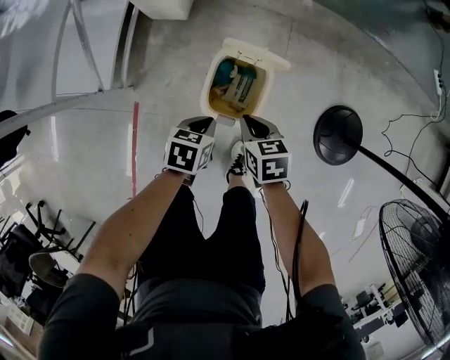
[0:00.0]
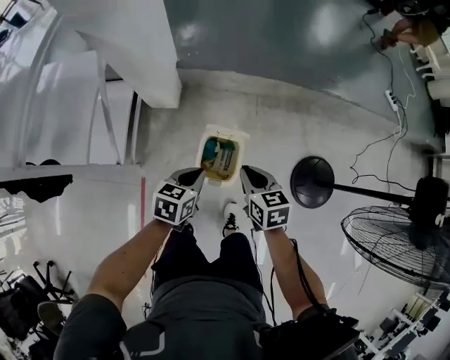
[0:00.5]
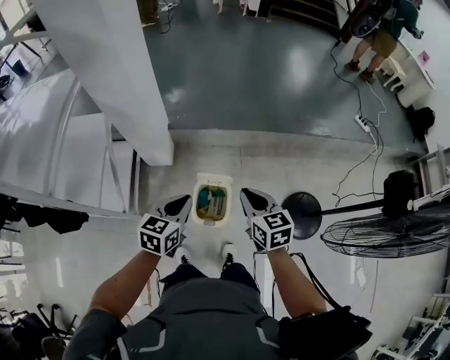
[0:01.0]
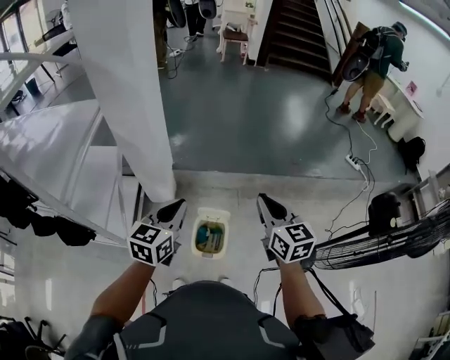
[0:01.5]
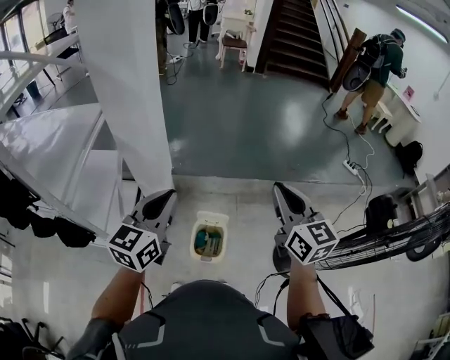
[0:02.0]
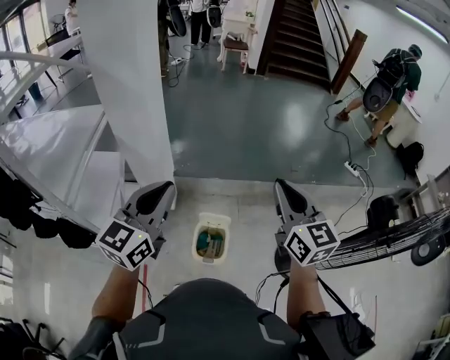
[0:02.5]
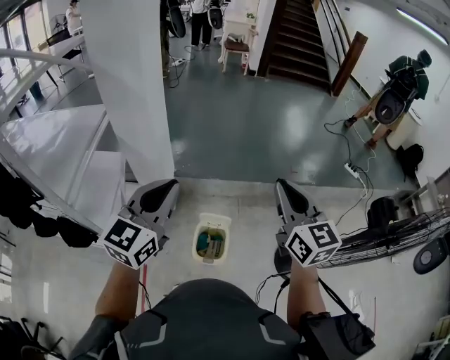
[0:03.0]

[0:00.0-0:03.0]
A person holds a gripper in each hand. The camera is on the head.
0:00.0 to 0:01.5: The two grippers go approximately 60 cm upward. The right gripper angles its fingers upward, by some 40 degrees; the left gripper tilts its fingers roughly 40 degrees upward.
0:01.5 to 0:03.0: The grippers both shift upward by about 15 cm.

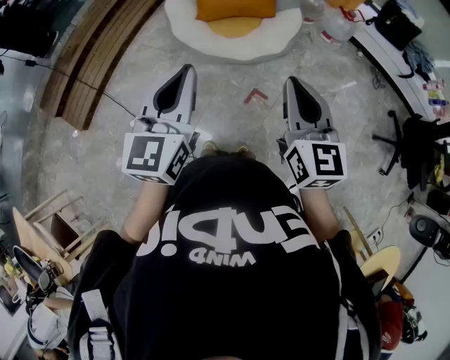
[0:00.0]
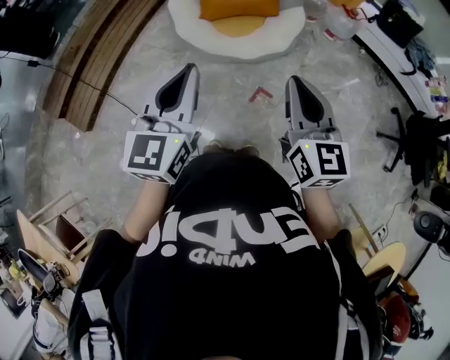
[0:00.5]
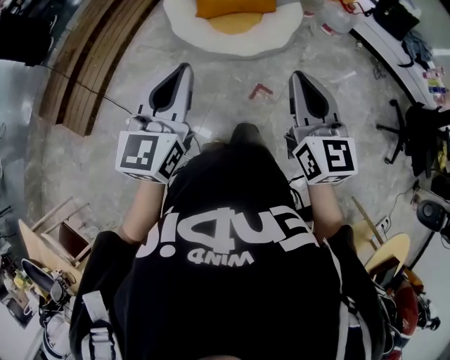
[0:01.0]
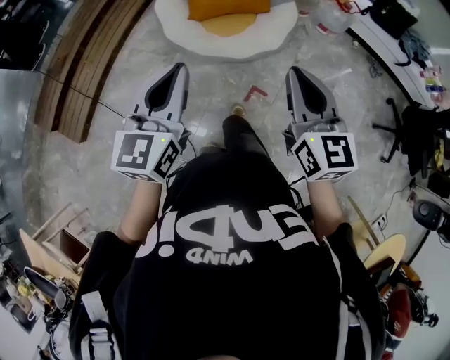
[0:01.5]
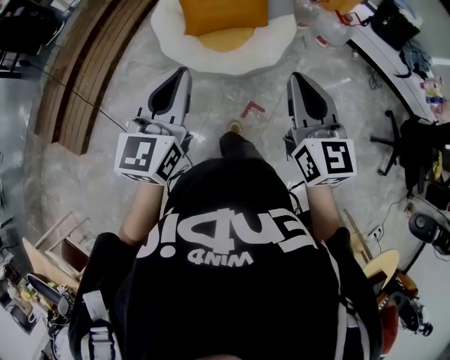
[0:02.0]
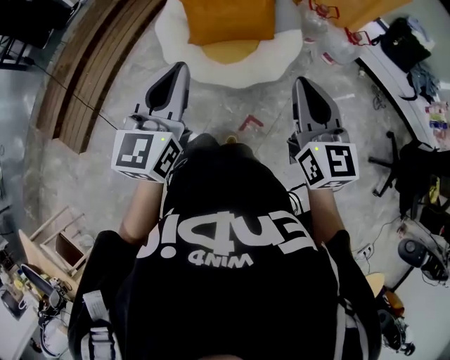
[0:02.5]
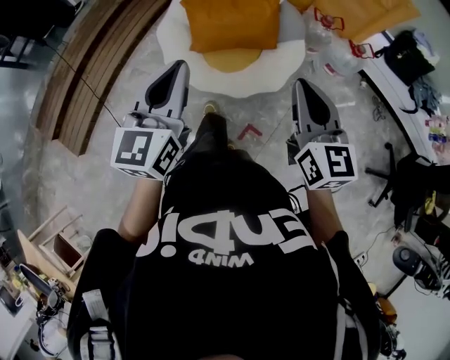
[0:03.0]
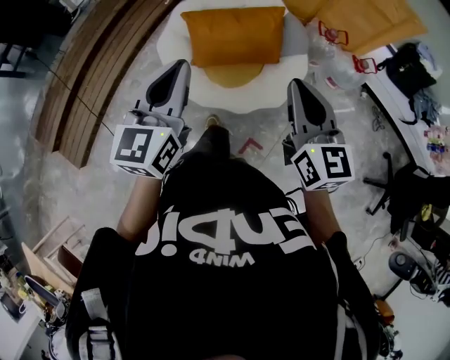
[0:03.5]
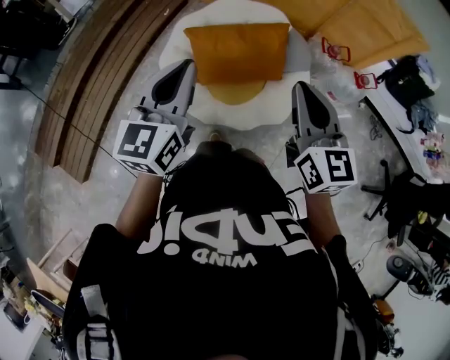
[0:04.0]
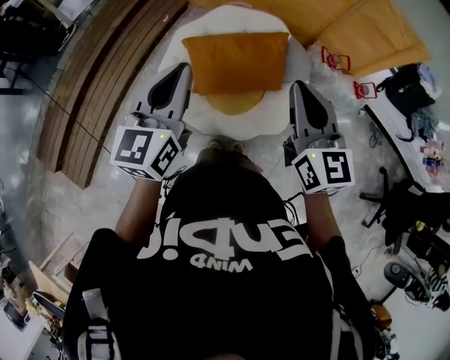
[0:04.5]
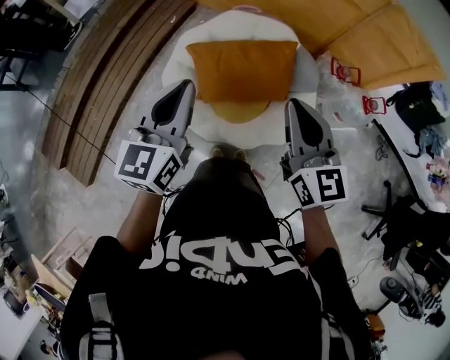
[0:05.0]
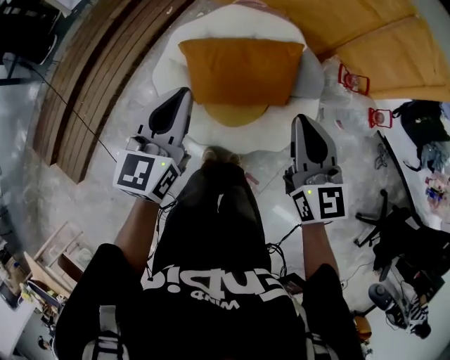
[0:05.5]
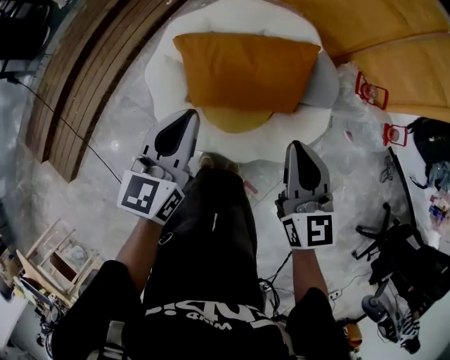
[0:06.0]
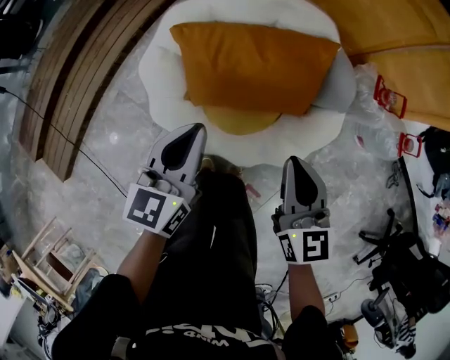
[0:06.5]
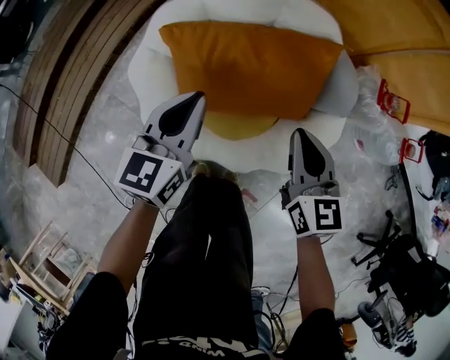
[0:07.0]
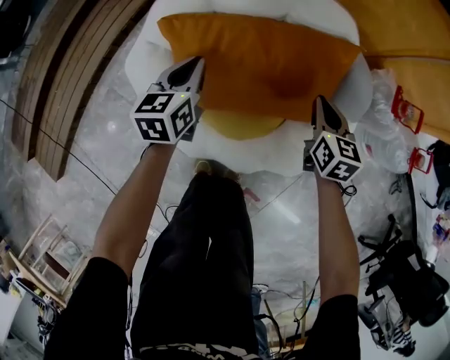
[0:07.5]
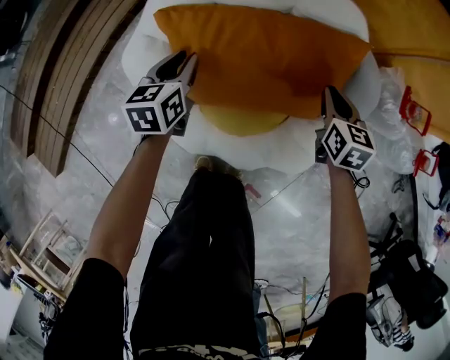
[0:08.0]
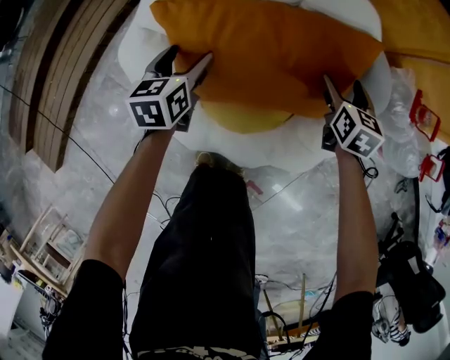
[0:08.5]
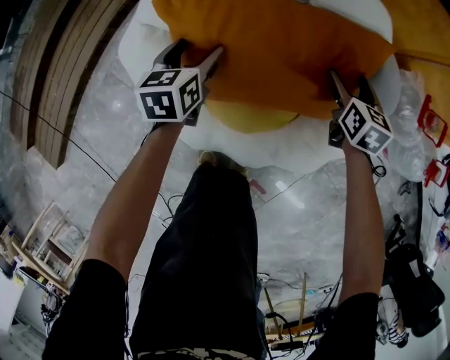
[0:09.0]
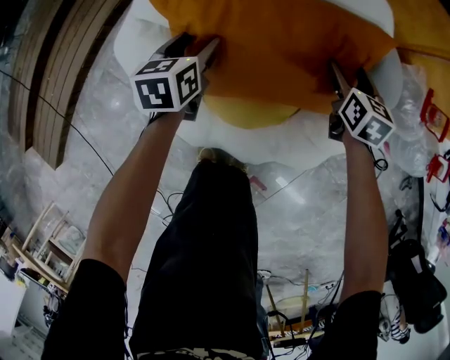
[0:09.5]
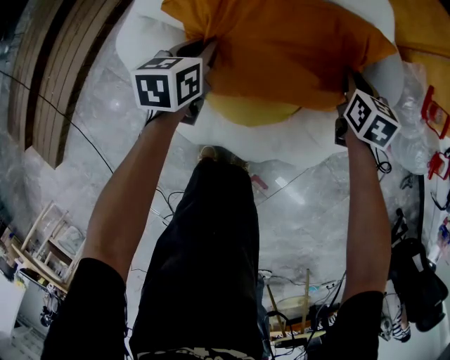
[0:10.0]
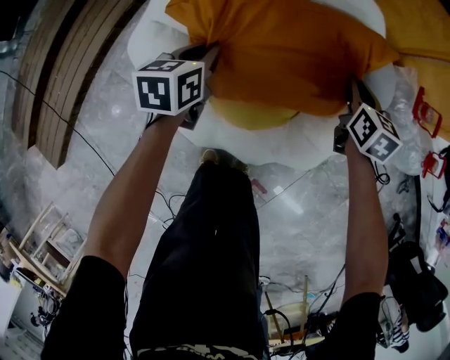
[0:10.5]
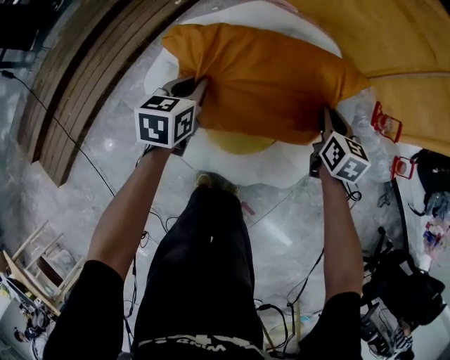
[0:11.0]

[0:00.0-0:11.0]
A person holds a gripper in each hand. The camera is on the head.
0:00.0 to 0:02.0: Both grippers move forward, about 15 cm.
0:02.0 to 0:03.5: Both grippers move forward, about 25 cm.
0:03.5 to 0:05.5: The right gripper goes roughly 25 cm forward. Meanwhile the left gripper travels forward and downward by about 25 cm.
0:05.5 to 0:07.5: Both grippers move downward, approximately 40 cm. The left gripper rotates approximately 20 degrees, while the right gripper rotates about 30 degrees.
0:07.5 to 0:09.0: The right gripper is displaced downward and forward by about 10 cm, and opens its fingers; the left gripper shifts roughly 10 cm downward, and opens its fingers.
0:09.0 to 0:11.0: The grippers both shift upward by about 20 cm. The right gripper closes its fingers, while the left gripper closes.

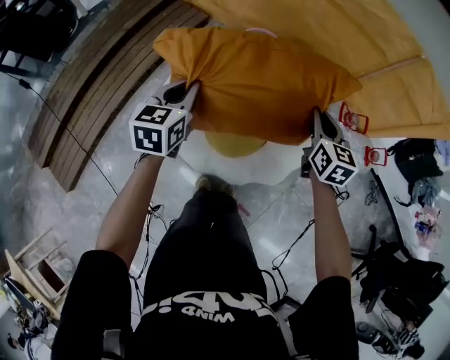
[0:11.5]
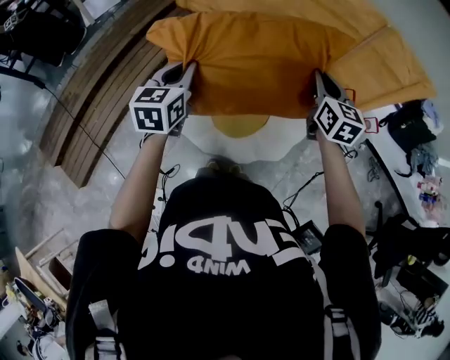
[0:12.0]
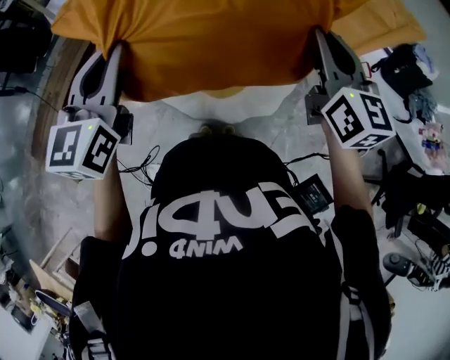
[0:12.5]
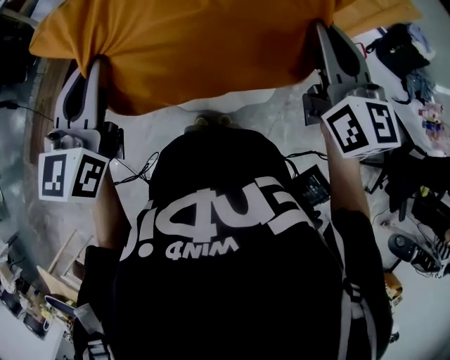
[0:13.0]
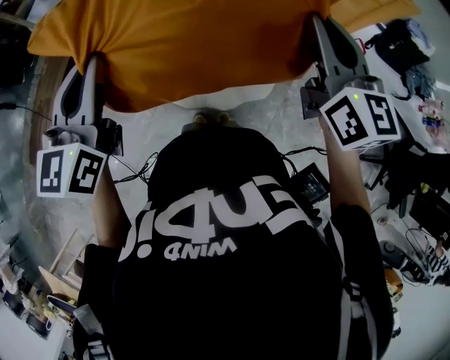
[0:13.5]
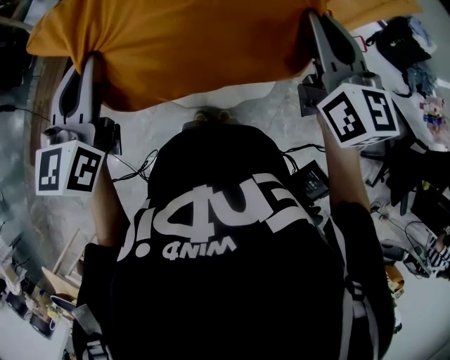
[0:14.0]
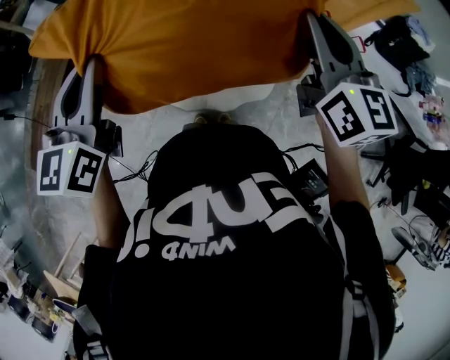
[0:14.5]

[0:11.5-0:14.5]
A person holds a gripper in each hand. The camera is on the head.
0:11.5 to 0:13.0: The two grippers go roughly 35 cm upward and backward. The left gripper rotates some 20 degrees, while the right gripper turns by approximately 20 degrees.
0:13.0 to 0:14.5: The grippers make only small movements.

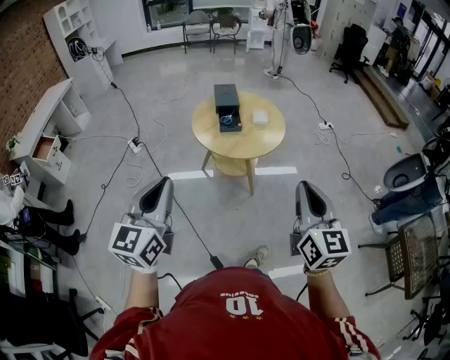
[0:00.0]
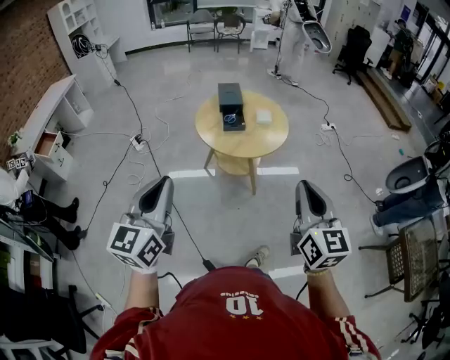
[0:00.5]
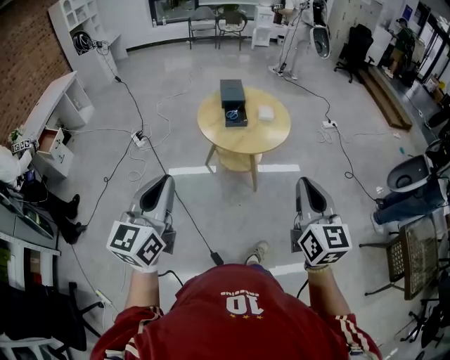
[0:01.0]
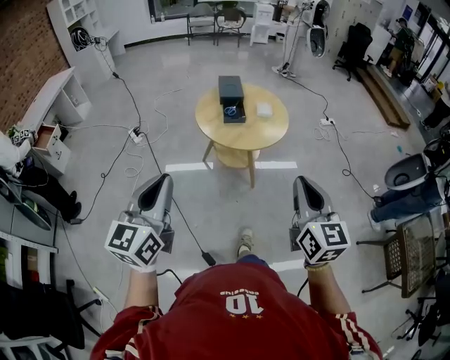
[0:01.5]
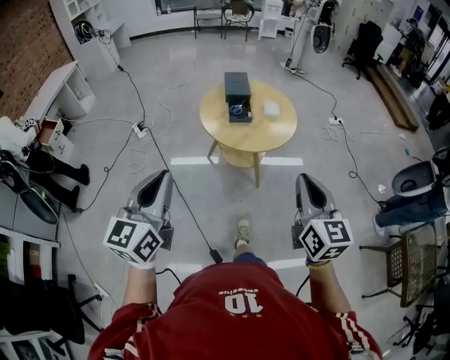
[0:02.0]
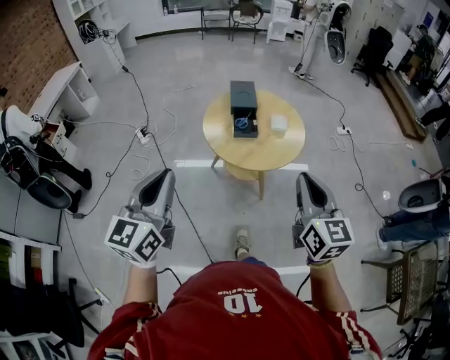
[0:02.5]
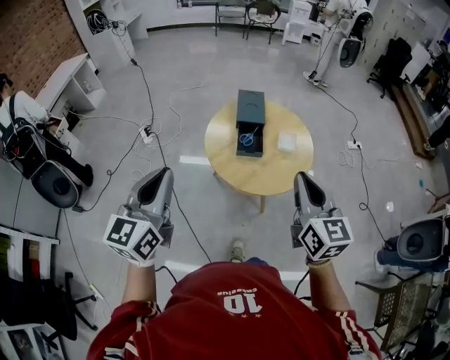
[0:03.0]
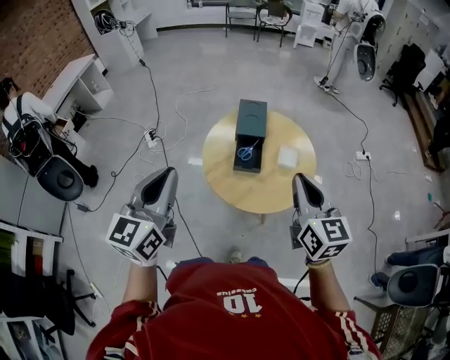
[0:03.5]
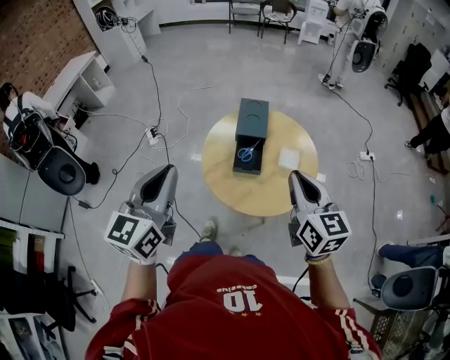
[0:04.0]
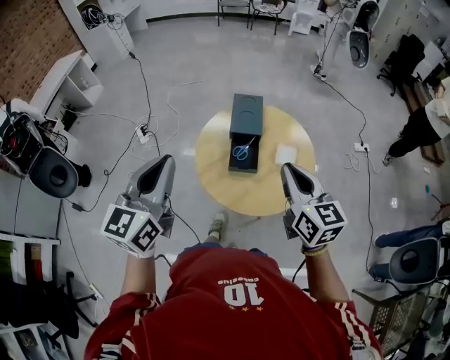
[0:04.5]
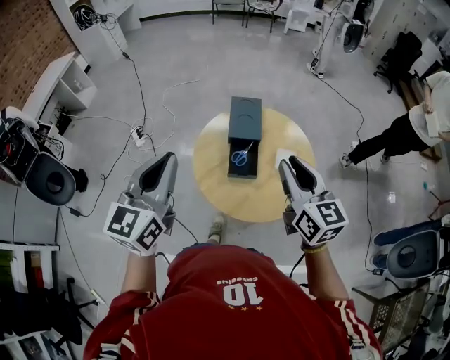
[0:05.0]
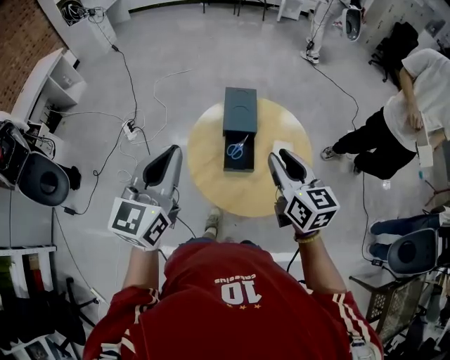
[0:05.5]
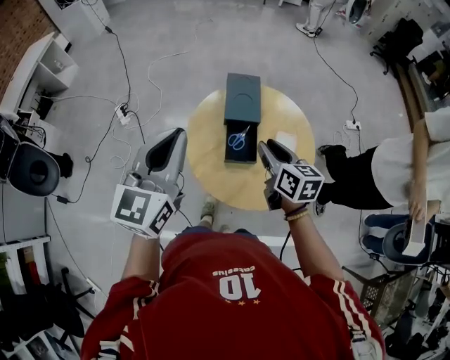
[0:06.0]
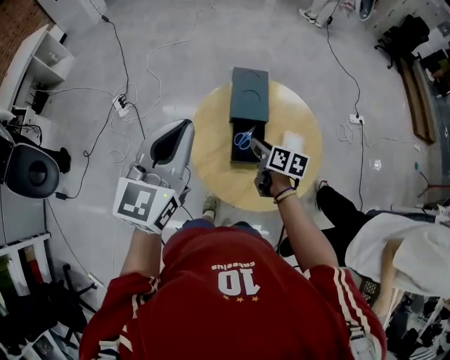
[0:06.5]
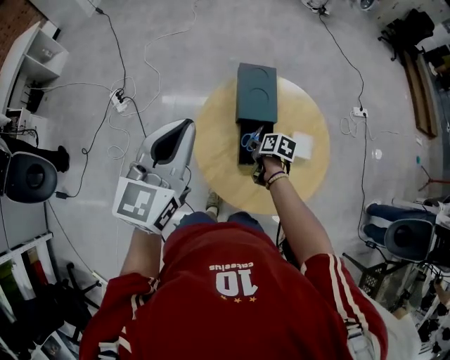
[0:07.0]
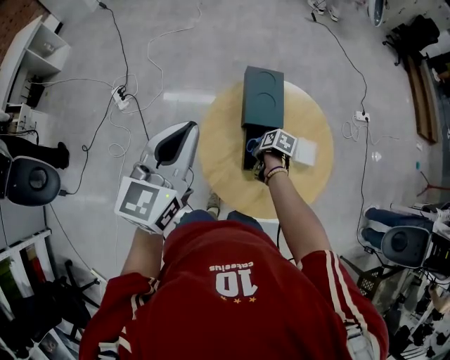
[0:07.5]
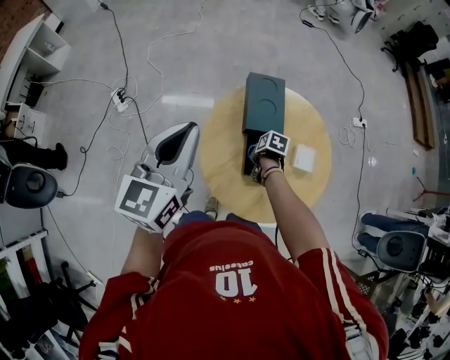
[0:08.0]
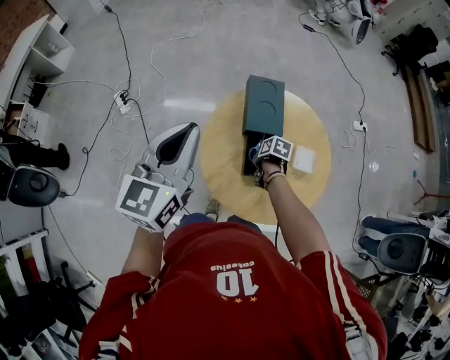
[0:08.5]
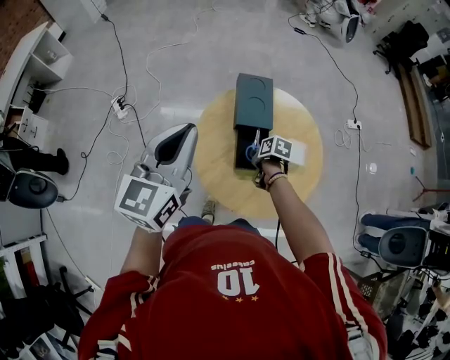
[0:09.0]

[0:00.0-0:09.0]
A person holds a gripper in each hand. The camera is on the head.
0:00.0 to 0:02.0: The right gripper is displaced forward by some 5 cm.
0:02.0 to 0:04.5: The grippers both shift forward by some 40 cm.
0:04.5 to 0:07.0: The right gripper shifts approximately 40 cm downward and forward, points its fingers roughly 50 degrees further downward, and opens up. Meanwhile the left gripper moves forward, about 20 cm.
0:07.0 to 0:09.0: The grippers stay close to where they were, moving slightly.
